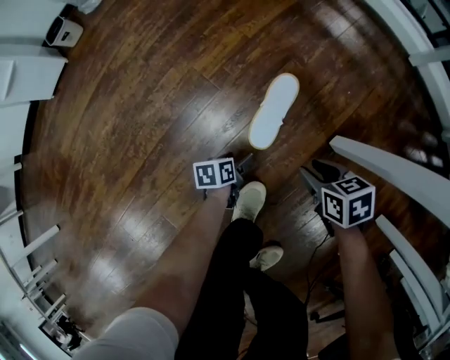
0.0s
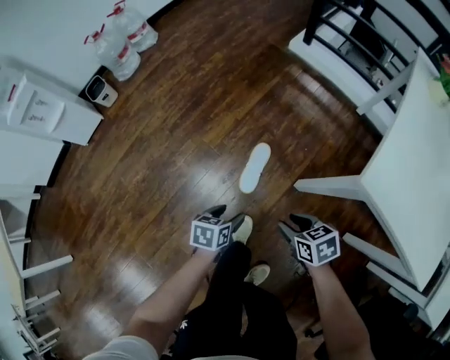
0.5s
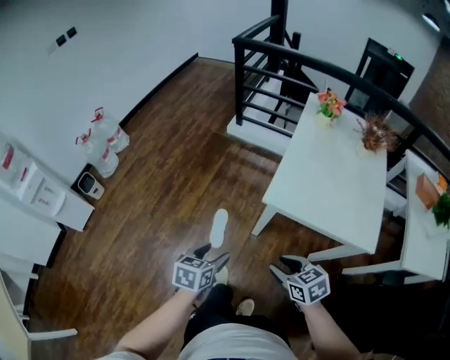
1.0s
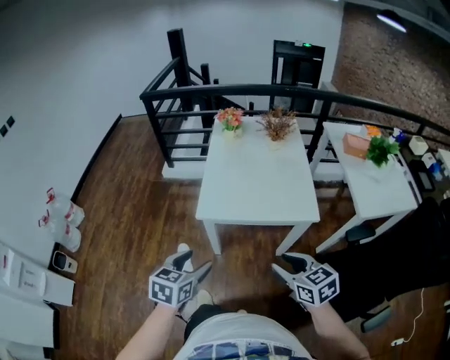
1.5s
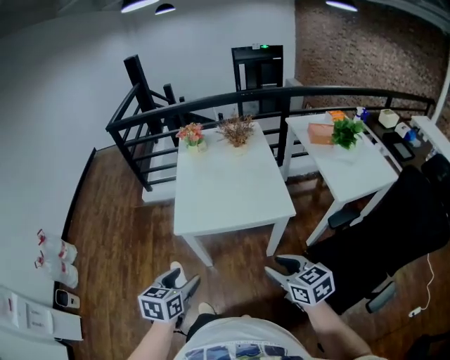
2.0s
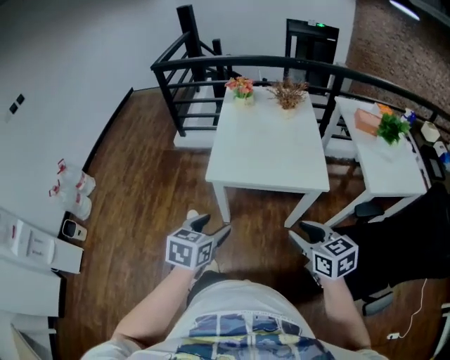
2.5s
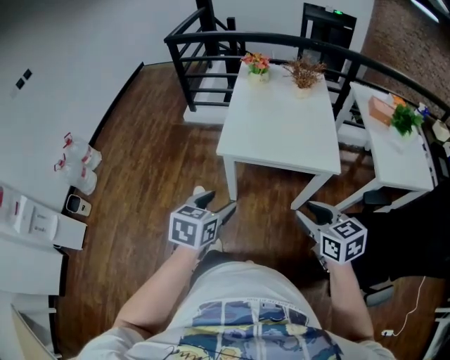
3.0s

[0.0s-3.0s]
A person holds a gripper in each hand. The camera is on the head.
0.0s to 1.5s: The grippers both shift upward by some 90 cm. The right gripper turns by roughly 50 degrees. The left gripper rotates around the line of its fingers by roughly 70 degrees, clockwise from behind.
1.5s to 3.0s: The left gripper moves about 5 cm.

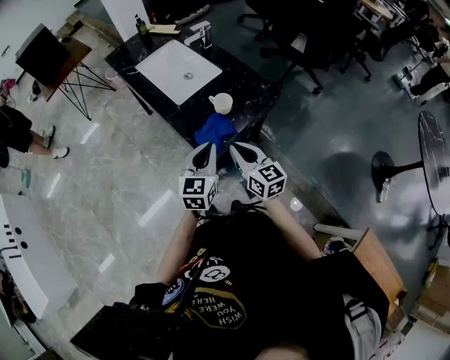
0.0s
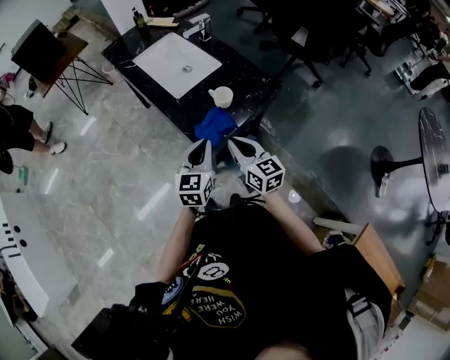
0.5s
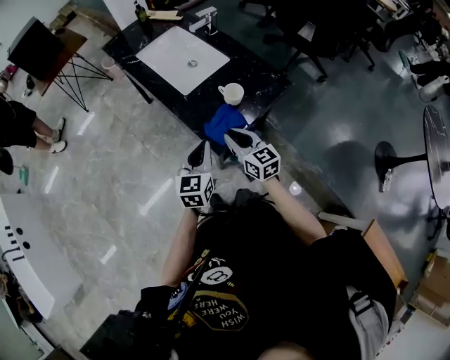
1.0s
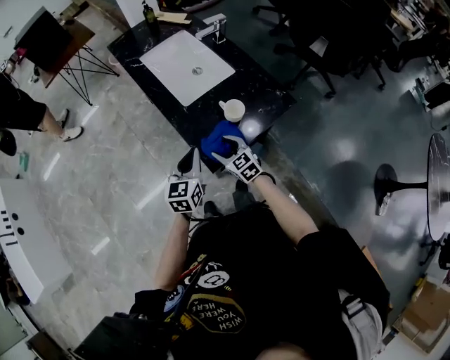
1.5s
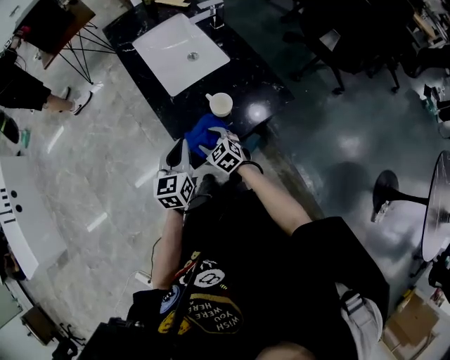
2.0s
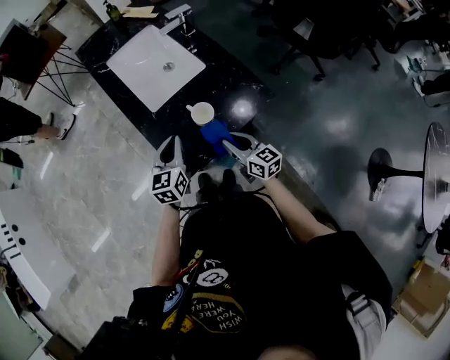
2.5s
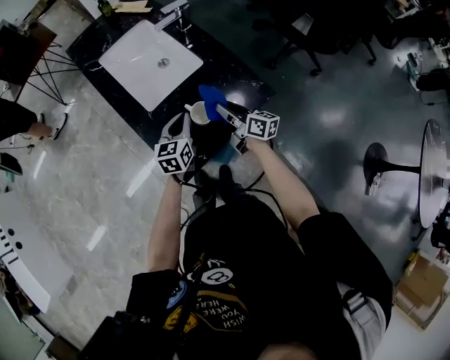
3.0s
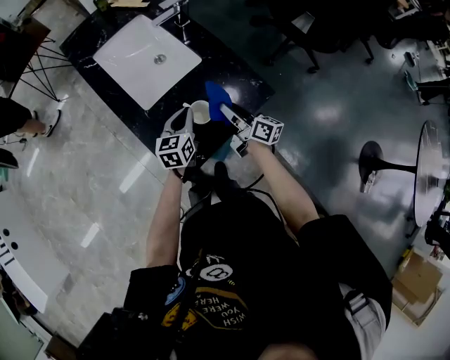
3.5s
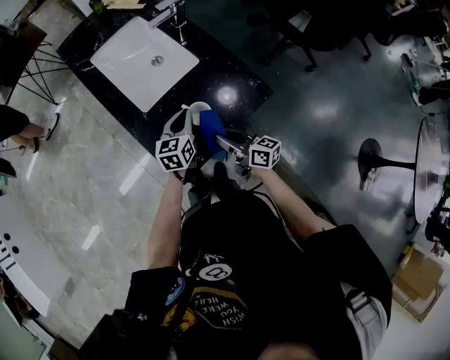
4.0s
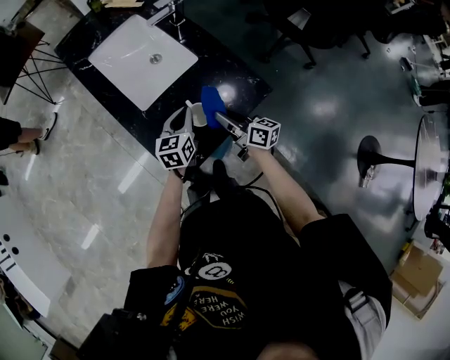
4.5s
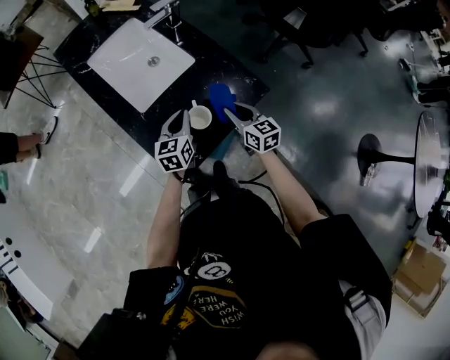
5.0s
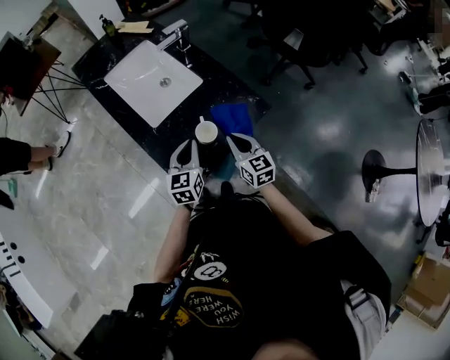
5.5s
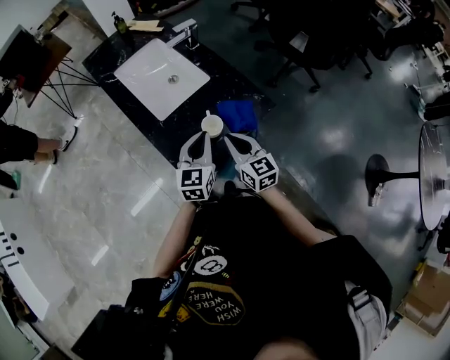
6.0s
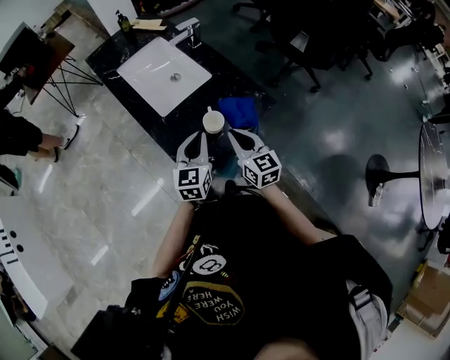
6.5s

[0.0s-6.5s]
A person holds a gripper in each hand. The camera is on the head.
0.0s to 2.0s: The right gripper heads downward and forward, covering roughly 25 cm, points its fingers approximately 30 degrees further downward, and opens its fingers. Meanwhile the left gripper travels forward and downward by roughly 10 cm, and swivels some 20 degrees.
2.0s to 4.5s: The left gripper moves forward, to the right and downward, some 20 cm; the right gripper heads to the right, forward and upward, covering some 20 cm, rotates around the line of its fingers by roughly 50 degrees, clockwise from behind, and closes.
4.5s to 6.5s: Both grippers travel together upward and backward, approximately 15 cm. The right gripper changes its angle by roughly 40 degrees.

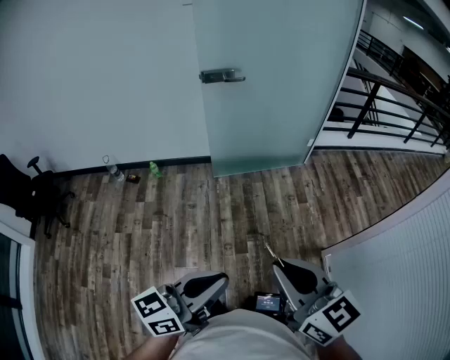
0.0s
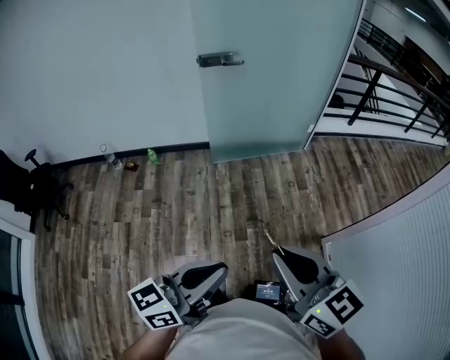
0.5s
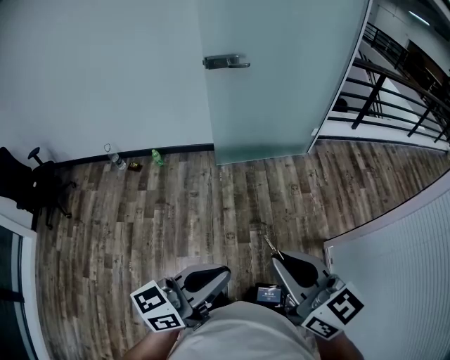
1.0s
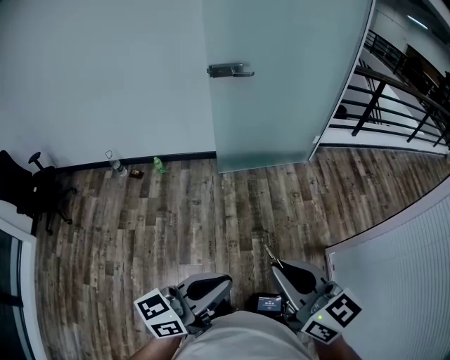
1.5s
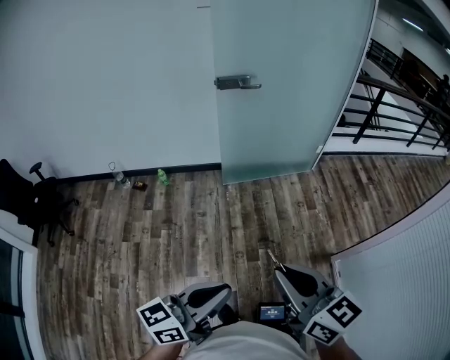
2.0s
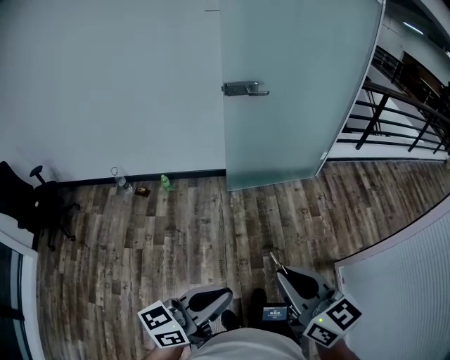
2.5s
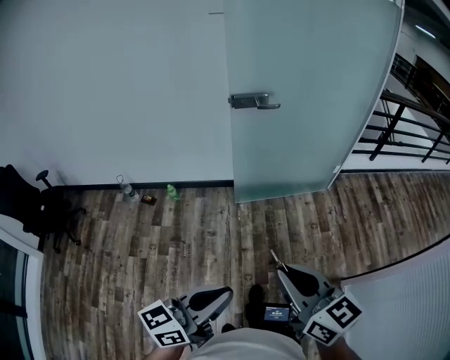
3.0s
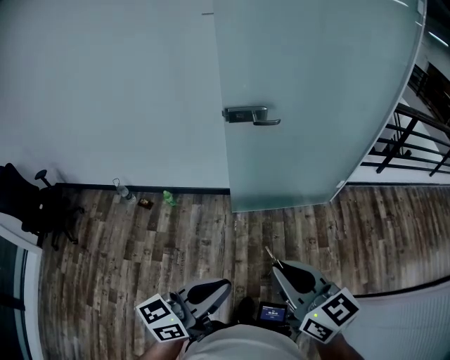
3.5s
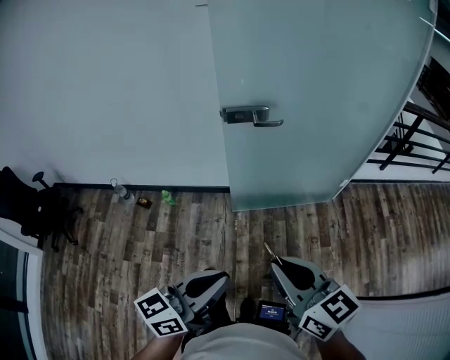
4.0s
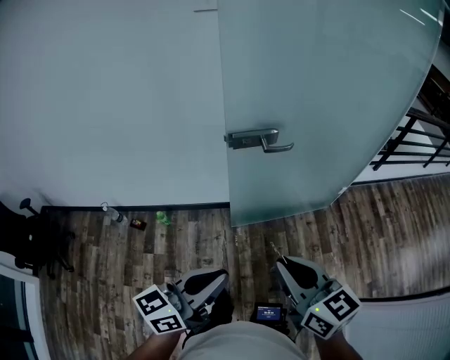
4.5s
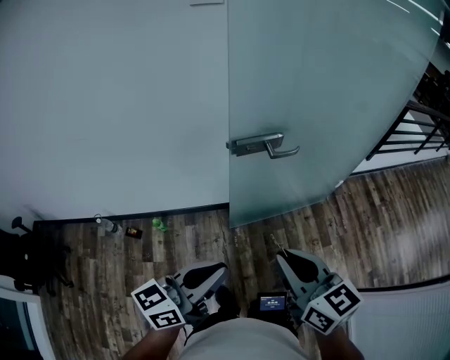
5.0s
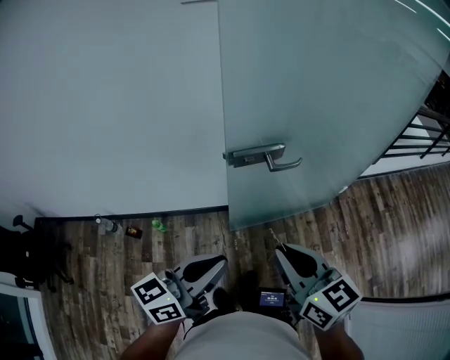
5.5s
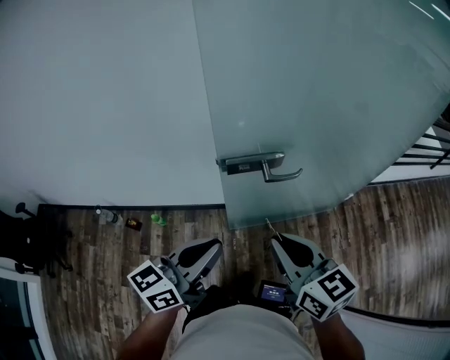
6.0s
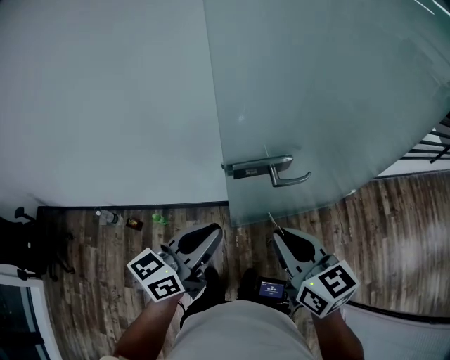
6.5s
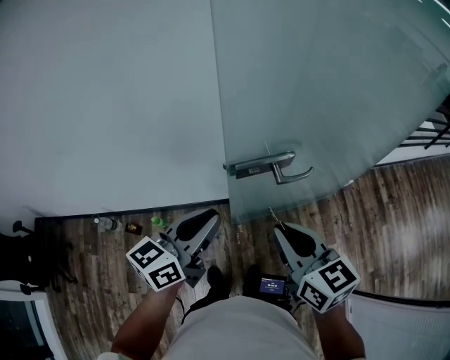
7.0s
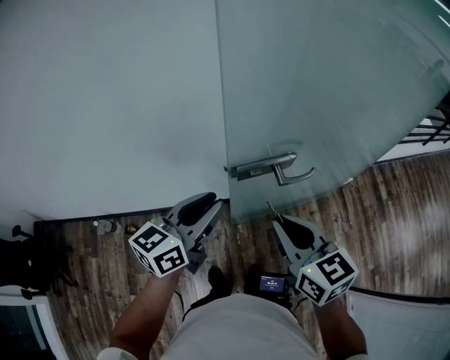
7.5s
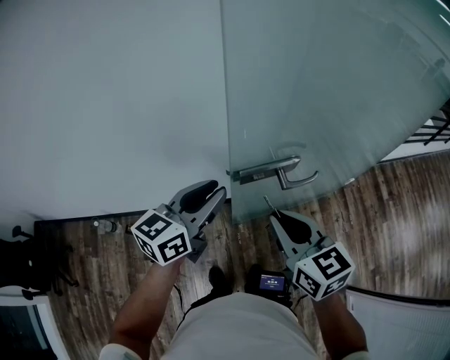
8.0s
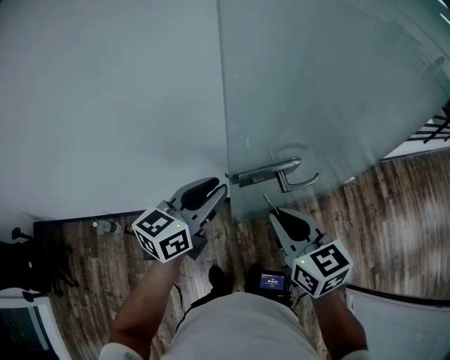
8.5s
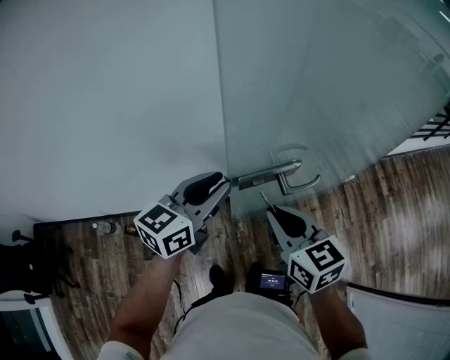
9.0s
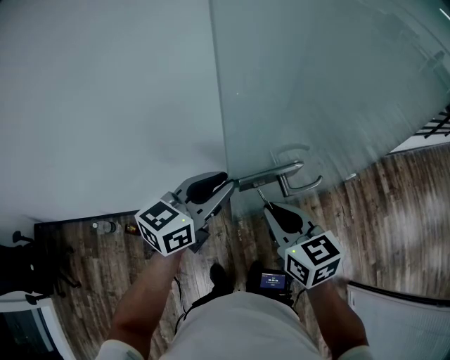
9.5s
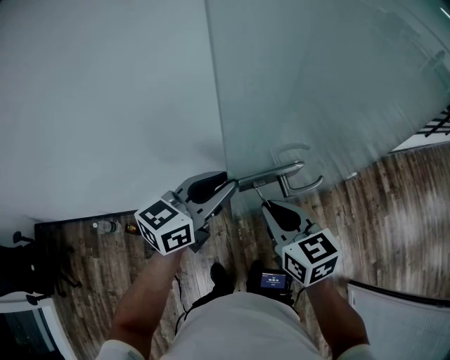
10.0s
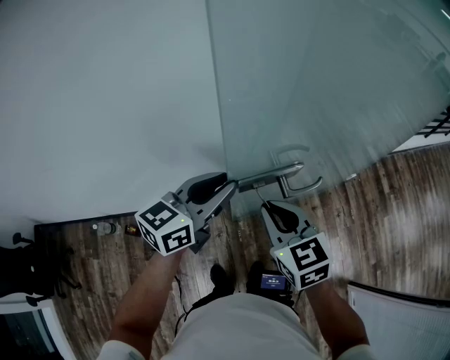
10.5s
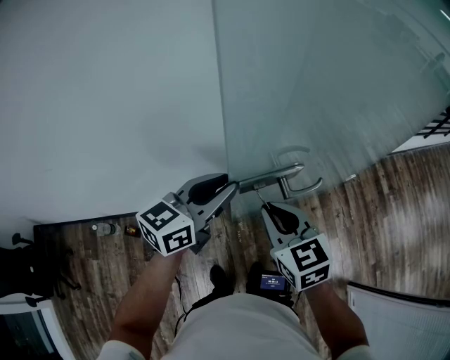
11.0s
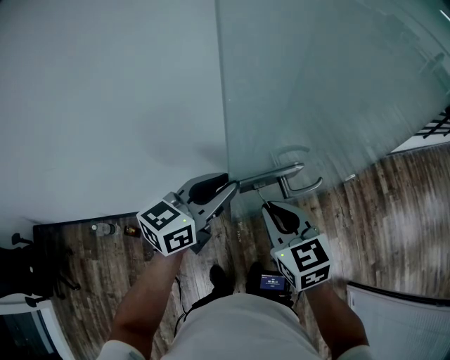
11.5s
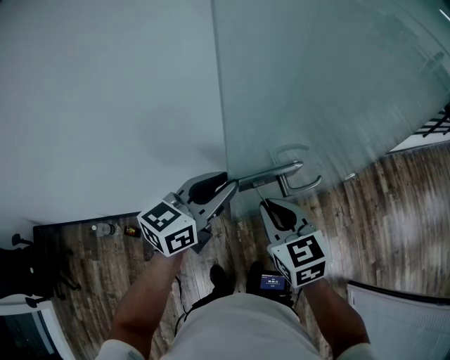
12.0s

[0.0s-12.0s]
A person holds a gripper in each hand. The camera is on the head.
0.0s to 2.0s: The two grippers go some 5 cm to the left.
2.0s to 4.0s: The two grippers go roughly 30 cm forward.
4.0s to 6.0s: The two grippers go some 30 cm forward.
6.0s to 8.0s: The left gripper moves forward, some 15 cm. The right gripper heads forward and to the left, covering approximately 10 cm.
8.0s to 10.0s: The right gripper changes place by approximately 5 cm.
10.0s to 12.0s: The grippers move only a little.

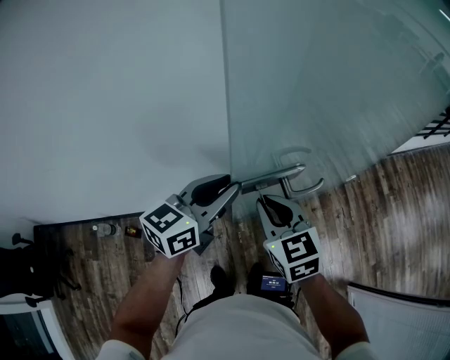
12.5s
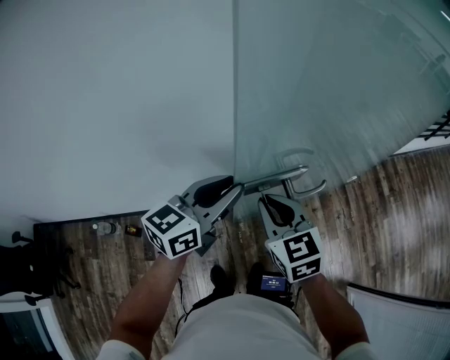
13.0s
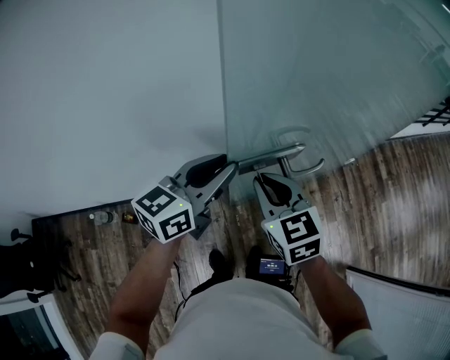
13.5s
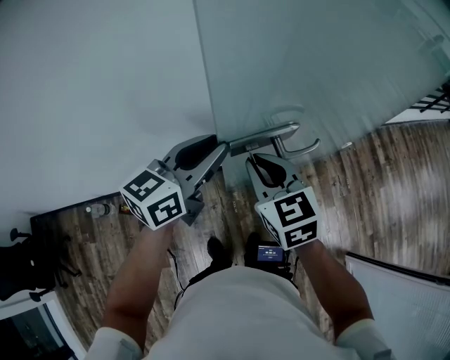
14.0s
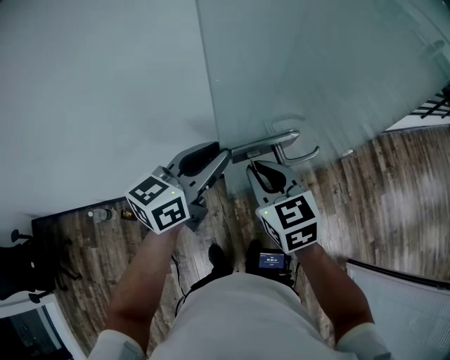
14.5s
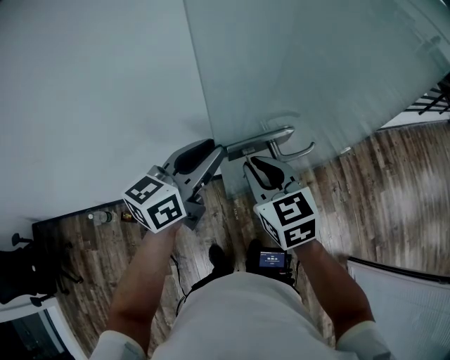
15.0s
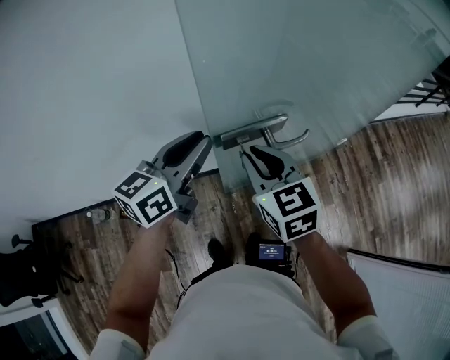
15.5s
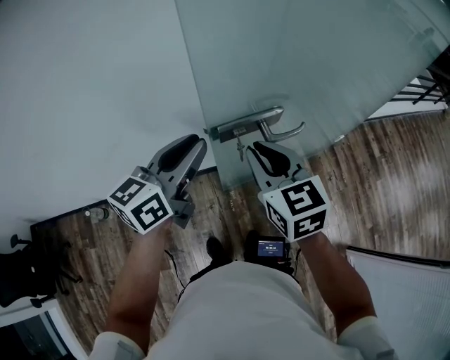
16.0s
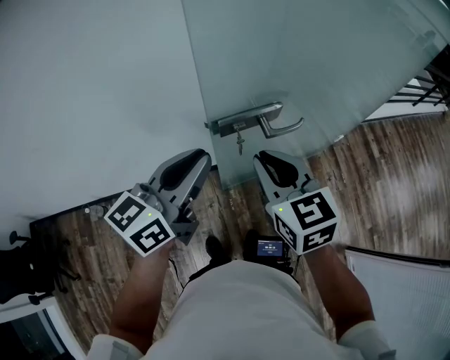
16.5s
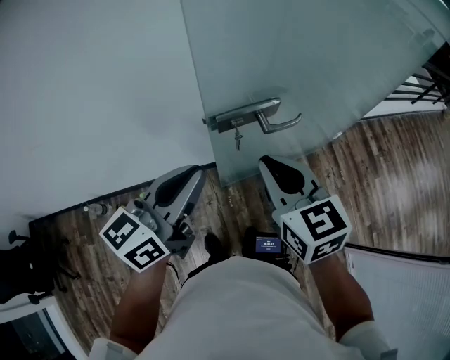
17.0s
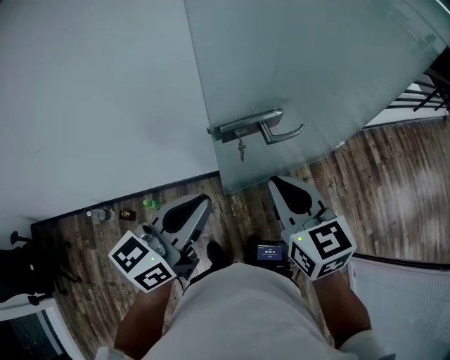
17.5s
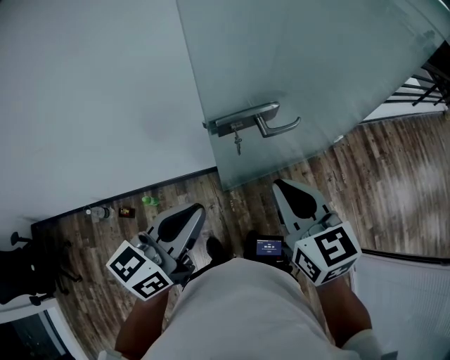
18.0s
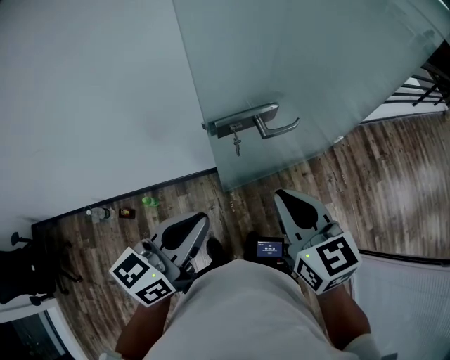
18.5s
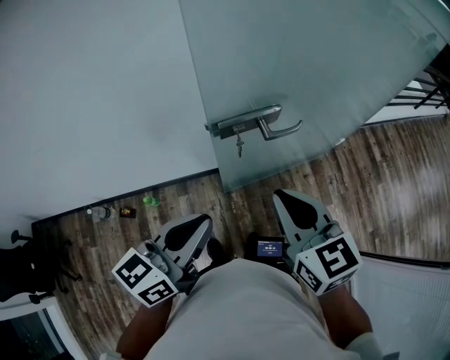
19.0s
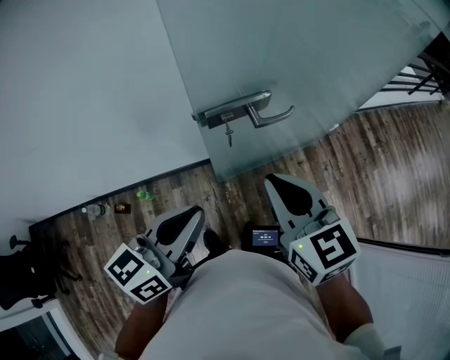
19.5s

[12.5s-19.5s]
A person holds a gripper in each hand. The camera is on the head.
12.5s to 14.5s: Both grippers stay put.
14.5s to 16.0s: The right gripper moves some 5 cm.
16.0s to 17.5s: The right gripper is displaced backward by some 5 cm. Meanwhile the left gripper moves backward, about 10 cm.
17.5s to 19.5s: The grippers make only small movements.
